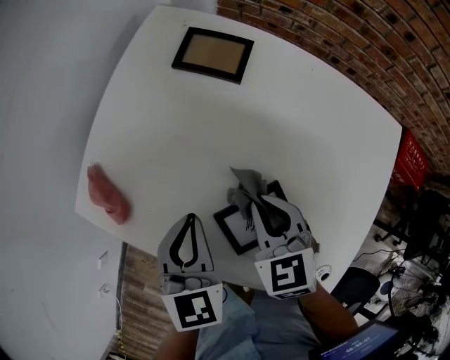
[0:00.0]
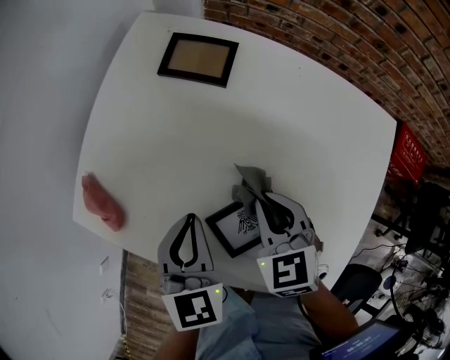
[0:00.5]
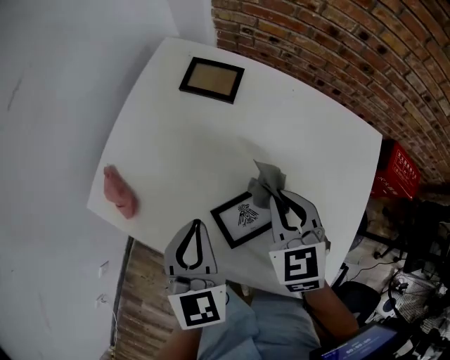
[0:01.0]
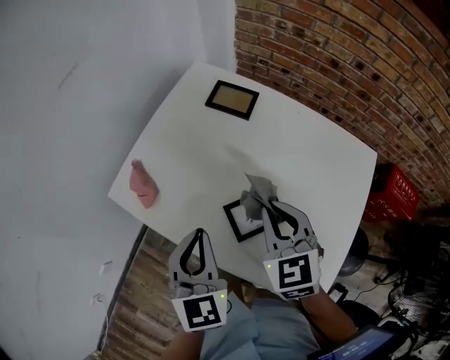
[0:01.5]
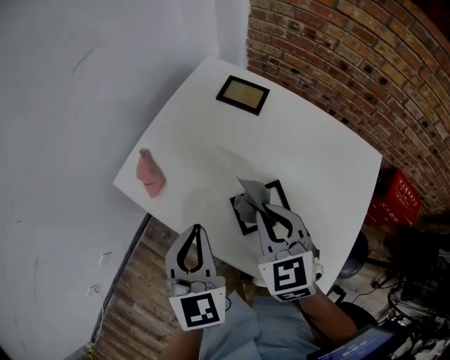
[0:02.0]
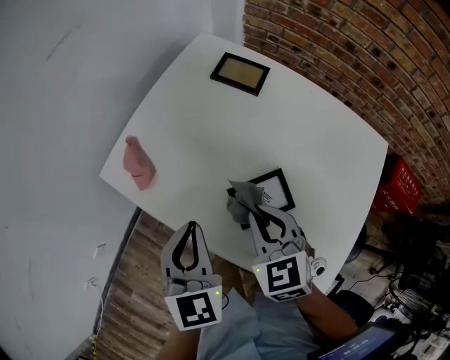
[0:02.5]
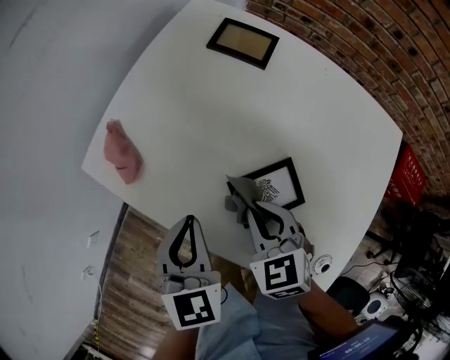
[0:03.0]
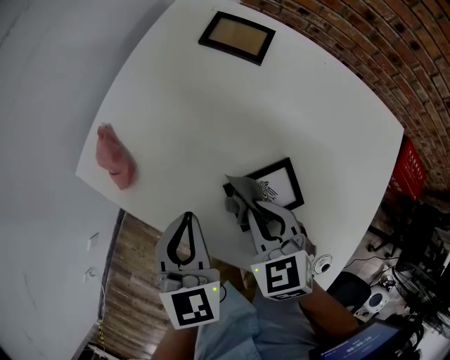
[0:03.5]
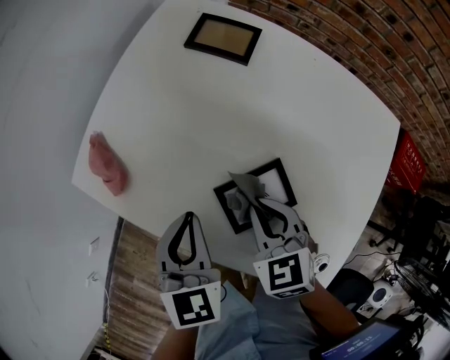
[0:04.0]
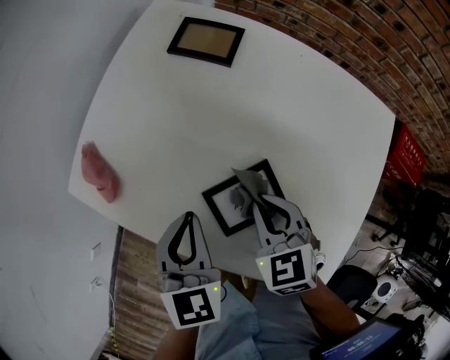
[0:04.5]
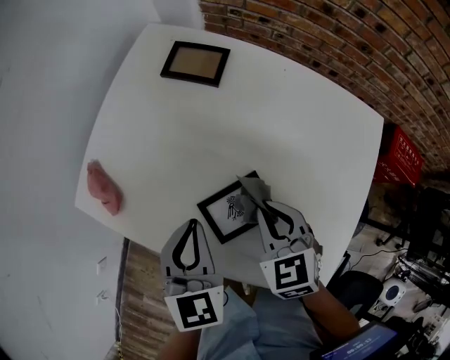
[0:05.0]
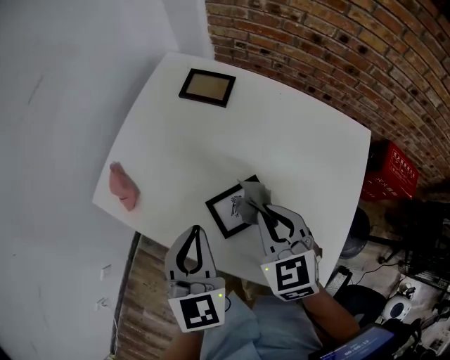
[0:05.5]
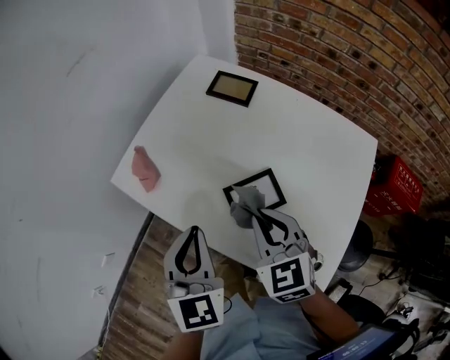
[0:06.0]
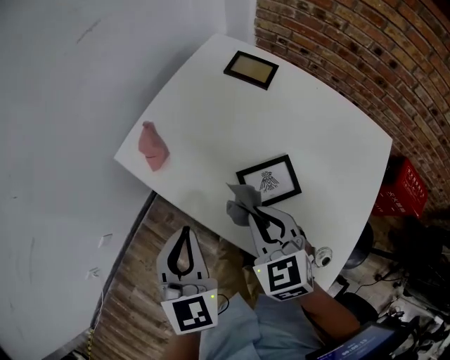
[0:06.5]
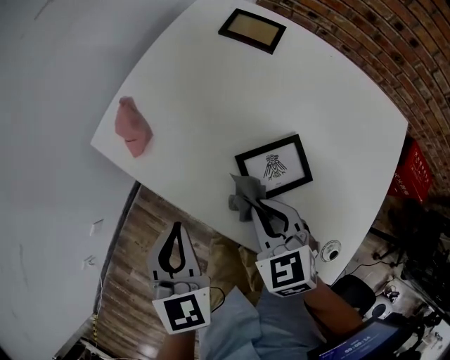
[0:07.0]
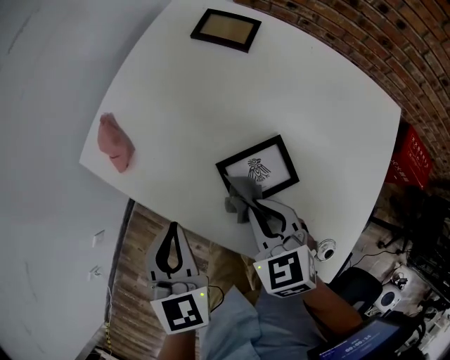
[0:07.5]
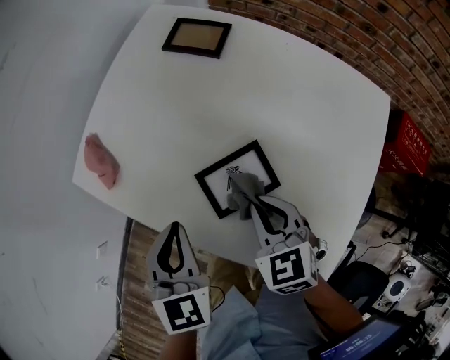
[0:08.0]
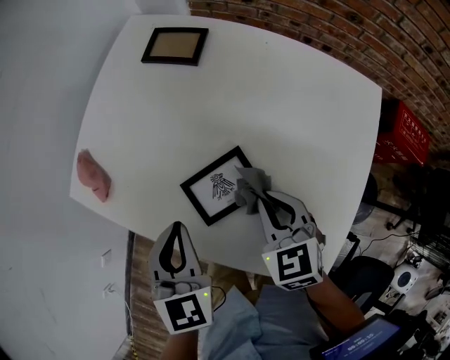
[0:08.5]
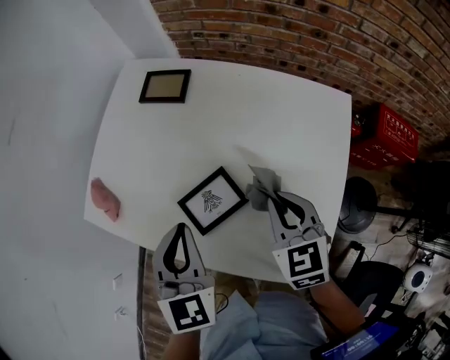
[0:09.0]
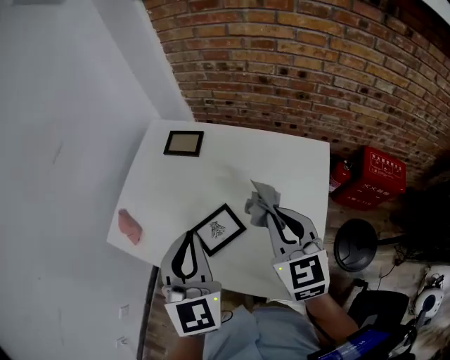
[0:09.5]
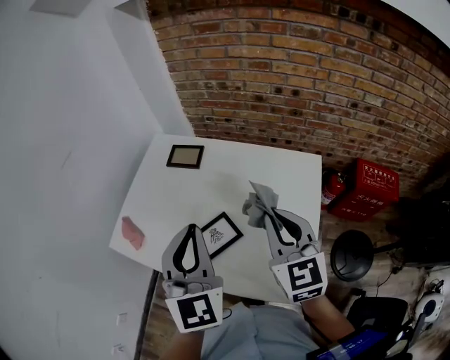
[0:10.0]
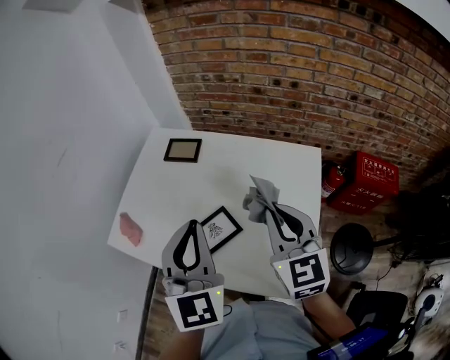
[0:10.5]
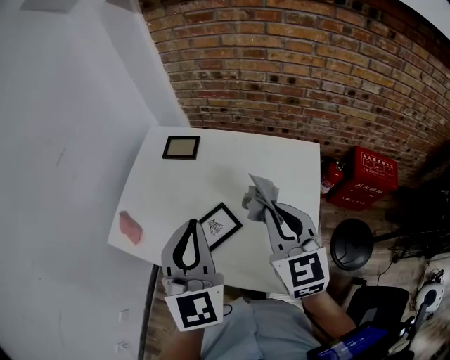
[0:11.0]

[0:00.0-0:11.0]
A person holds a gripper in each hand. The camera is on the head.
0:00.0 to 0:02.0: The grippers both shift upward and backward by about 15 cm.
0:02.0 to 0:03.5: Both grippers move downward, approximately 10 cm.
0:03.5 to 0:05.5: Both grippers move upward and to the right, approximately 10 cm.
0:05.5 to 0:07.5: The left gripper moves to the left and downward, approximately 10 cm, while the right gripper moves downward and to the left, some 10 cm.
0:07.5 to 0:09.0: The left gripper is displaced to the right and upward by approximately 15 cm. Meanwhile the right gripper shifts about 15 cm to the right, and turns by roughly 20 degrees.
0:09.0 to 0:11.0: Both grippers travel together upward, roughly 20 cm. The left gripper swivels some 20 degrees. The right gripper turns by some 20 degrees.

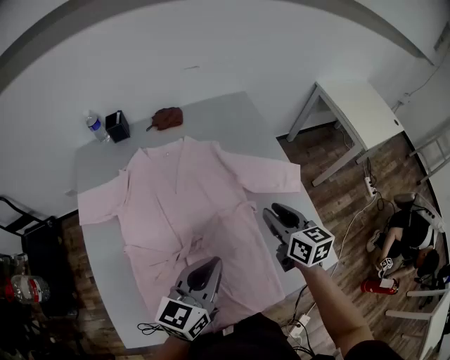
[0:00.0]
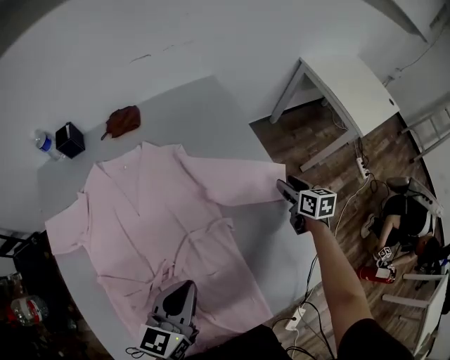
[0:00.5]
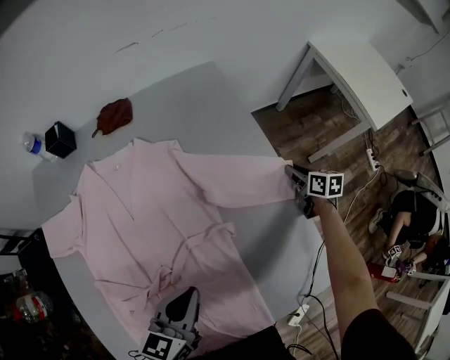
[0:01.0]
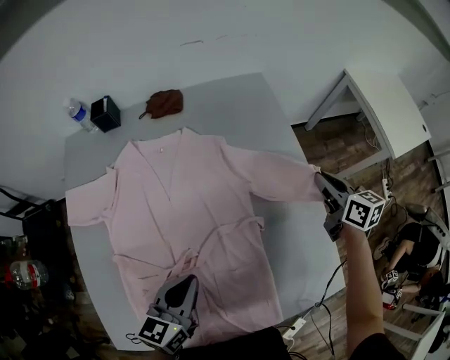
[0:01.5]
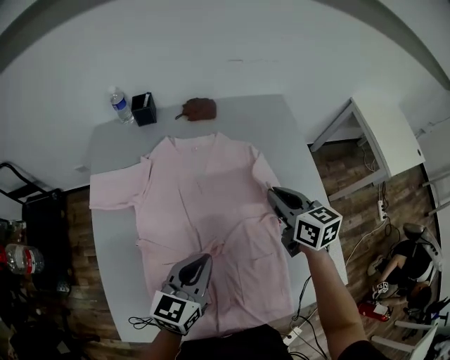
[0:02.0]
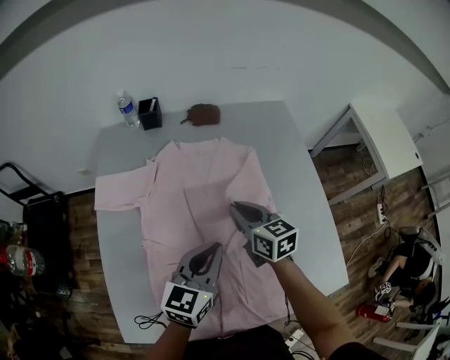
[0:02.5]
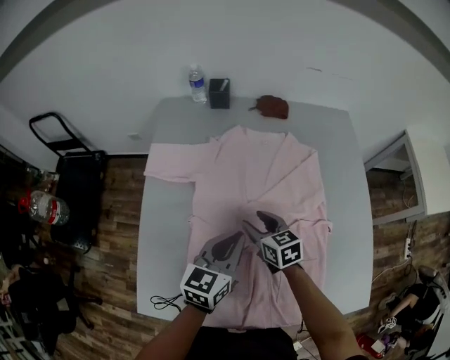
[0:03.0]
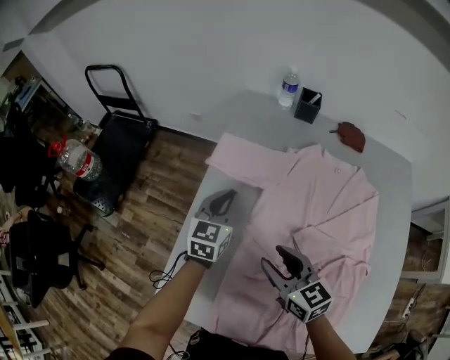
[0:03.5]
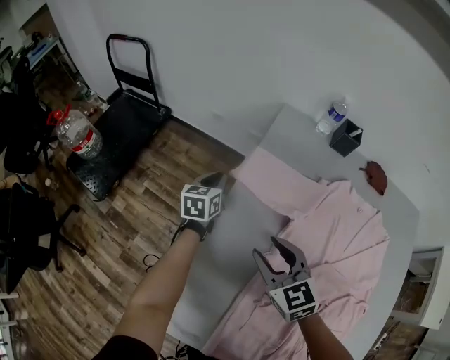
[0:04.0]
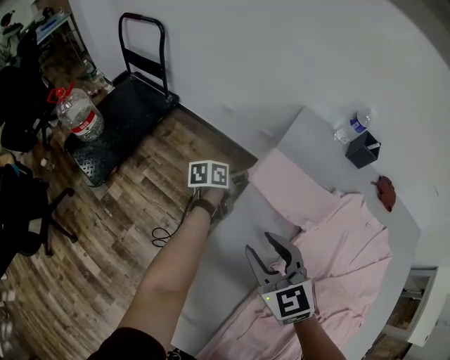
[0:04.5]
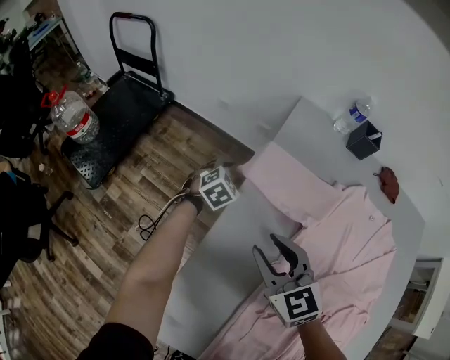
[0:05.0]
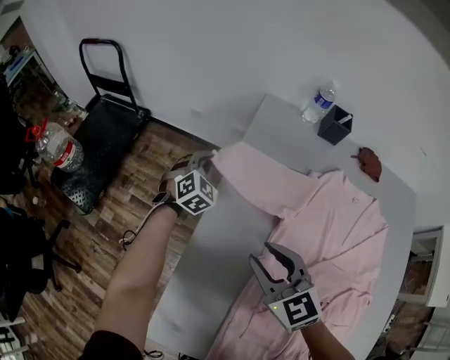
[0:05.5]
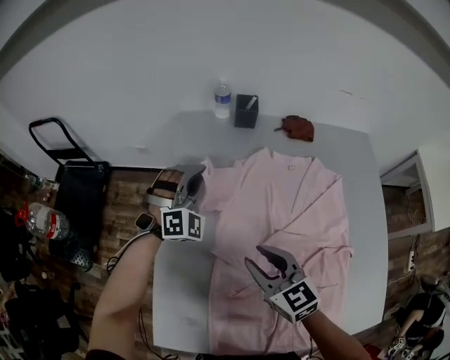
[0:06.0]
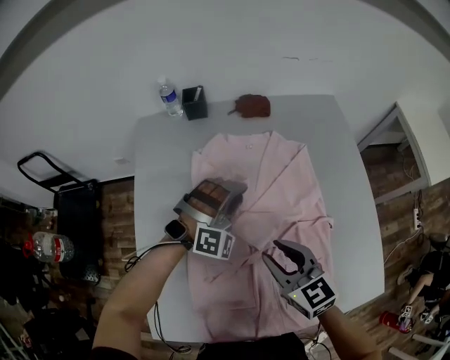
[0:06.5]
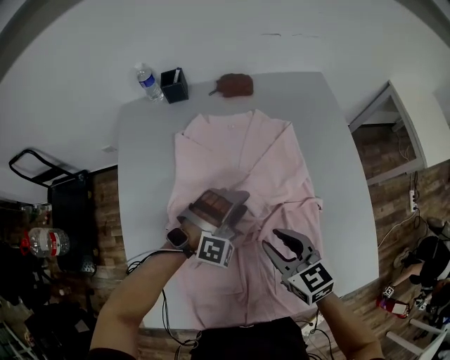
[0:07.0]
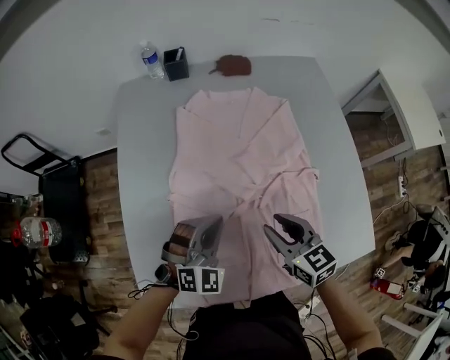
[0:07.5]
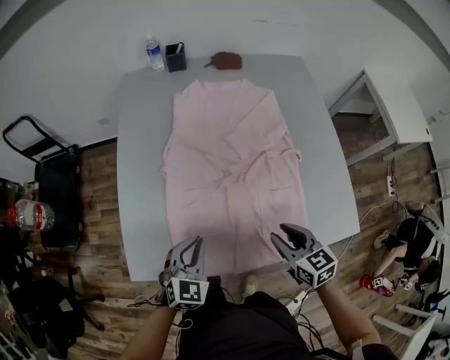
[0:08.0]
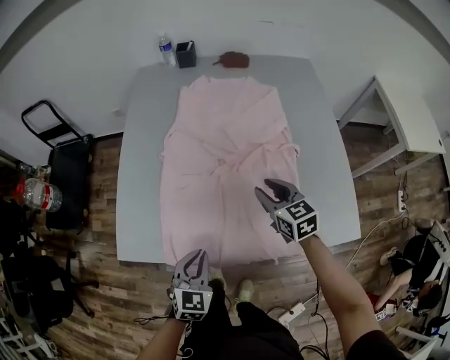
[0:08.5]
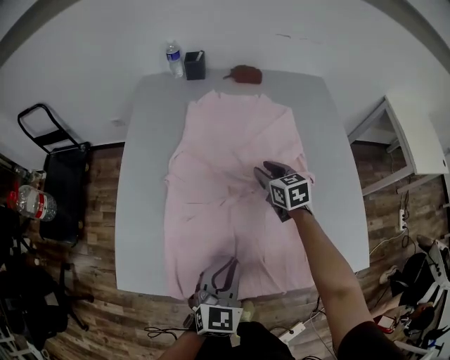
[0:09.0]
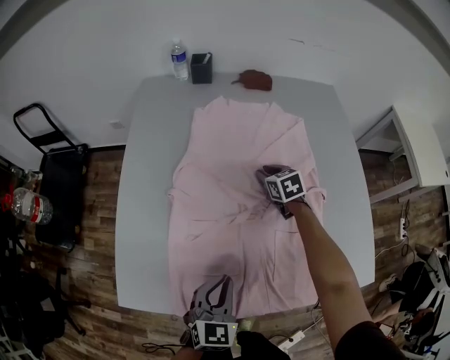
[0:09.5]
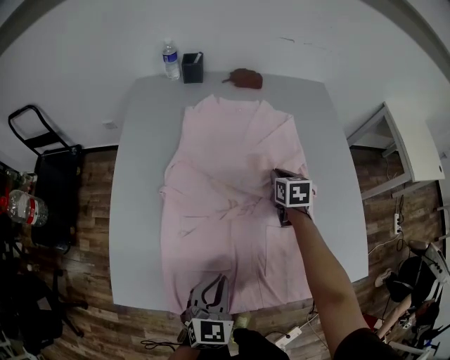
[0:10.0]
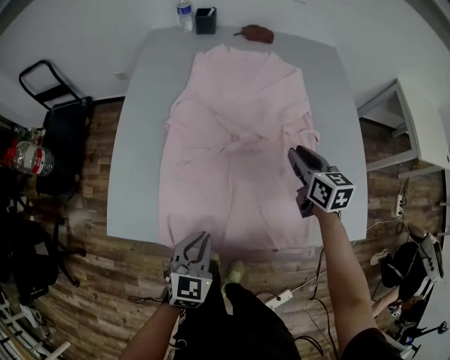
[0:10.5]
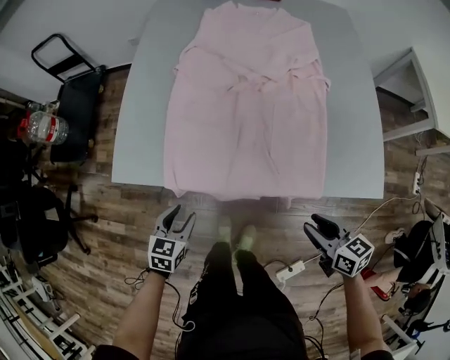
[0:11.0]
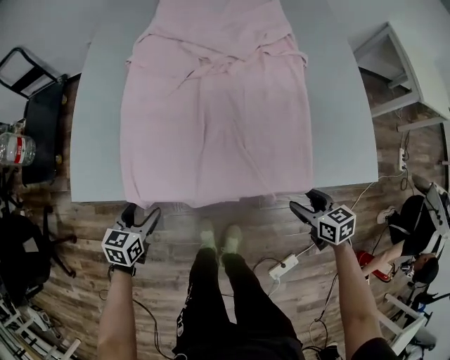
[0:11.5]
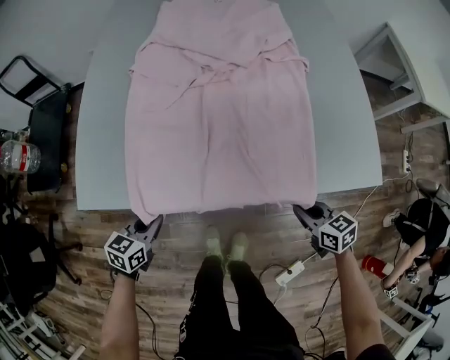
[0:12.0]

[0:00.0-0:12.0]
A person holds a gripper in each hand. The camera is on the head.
0:00.0 to 0:02.0: The right gripper goes roughly 10 cm forward, and travels to the right and back again, about 25 cm each way. The left gripper heads to the left, covering some 10 cm.
0:02.0 to 0:04.0: The pair of grippers is taken some 50 cm. The right gripper rotates approximately 50 degrees, and opens. The left gripper turns by approximately 50 degrees.
0:04.0 to 0:06.0: The left gripper moves to the right and upward, some 25 cm, twists some 90 degrees clockwise, seen from behind, and opens, then closes once more. Meanwhile the right gripper moves to the right and backward, about 15 cm, and turns by about 20 degrees.
0:06.0 to 0:08.0: The left gripper heads backward, covering approximately 40 cm, rolls counterclockwise, seen from behind, by roughly 50 degrees, and opens and closes again. Meanwhile the right gripper moves backward and to the right, about 35 cm, and rotates approximately 20 degrees.
0:08.0 to 0:10.0: The right gripper is displaced forward by some 30 cm, and closes up; the left gripper heads to the right, covering approximately 5 cm.
0:10.0 to 0:12.0: The left gripper moves downward, backward and to the left, some 25 cm, swivels approximately 30 degrees, and opens and closes again. Meanwhile the right gripper heads backward, covering about 50 cm, turns by approximately 30 degrees, and opens and closes again.

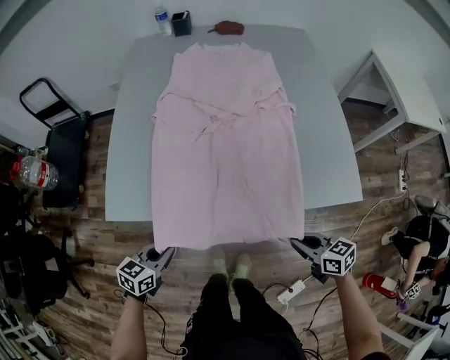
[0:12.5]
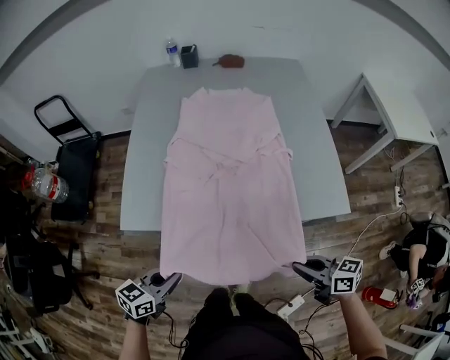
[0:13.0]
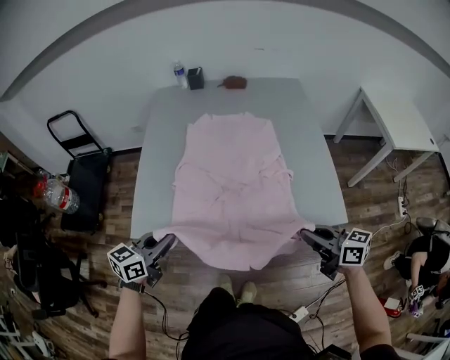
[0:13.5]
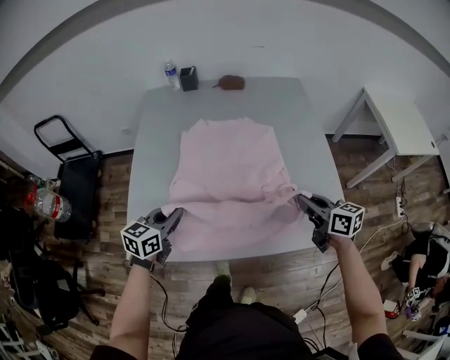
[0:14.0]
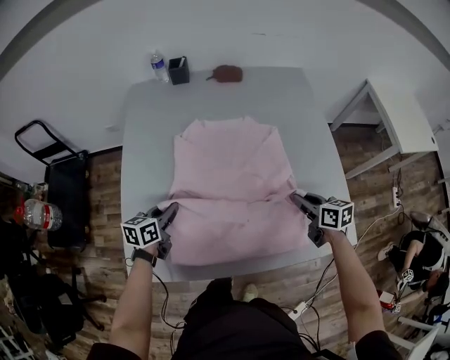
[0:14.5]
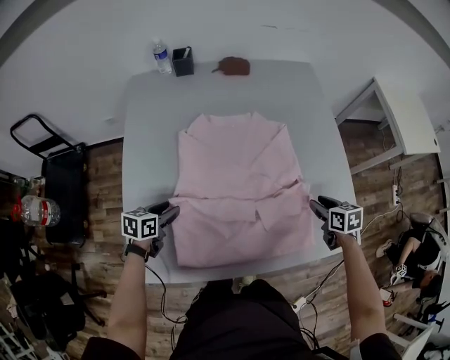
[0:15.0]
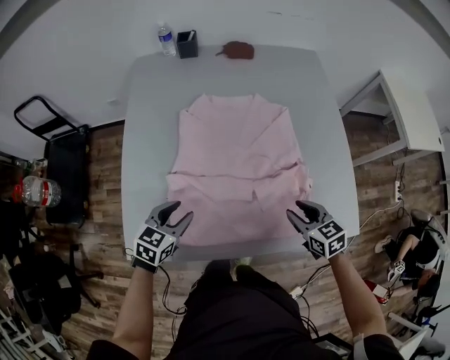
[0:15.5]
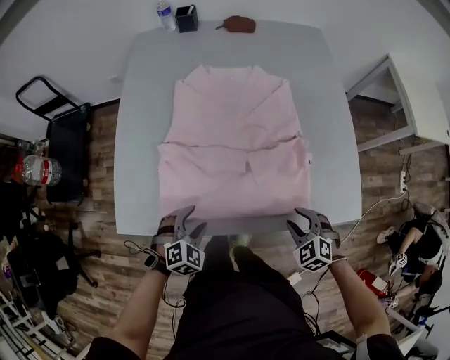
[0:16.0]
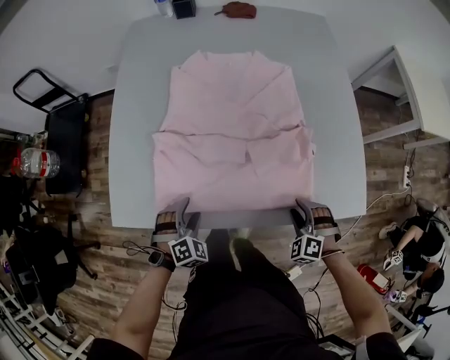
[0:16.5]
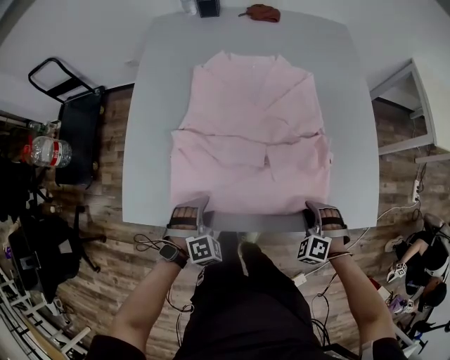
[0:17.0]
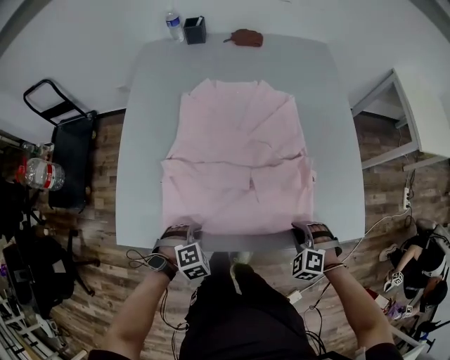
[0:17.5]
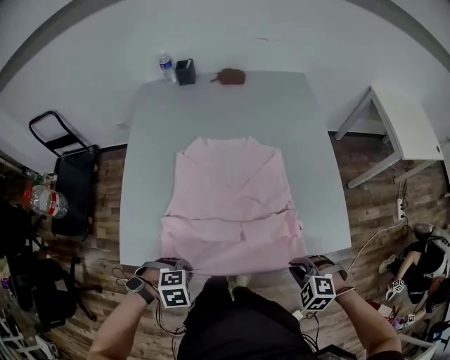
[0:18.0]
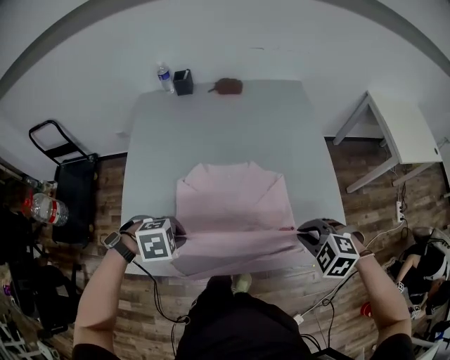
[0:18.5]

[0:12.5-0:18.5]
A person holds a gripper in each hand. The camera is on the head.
0:12.5 to 0:14.5: The two grippers go some 35 cm forward.
0:14.5 to 0:16.5: The right gripper heads backward and downward, covering about 20 cm, rotates around the line of its fingers by some 80 degrees, counterclockwise from behind, and opens up; the left gripper goes roughly 25 cm backward, downward and to the right, rotates around the line of its fingers by roughly 70 degrees, clockwise from behind, and opens up.
0:16.5 to 0:18.5: The two grippers go approximately 20 cm upward. The left gripper changes its angle by approximately 40 degrees, and closes its fingers. Meanwhile the right gripper closes.
